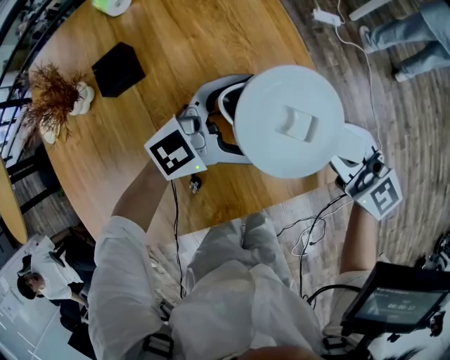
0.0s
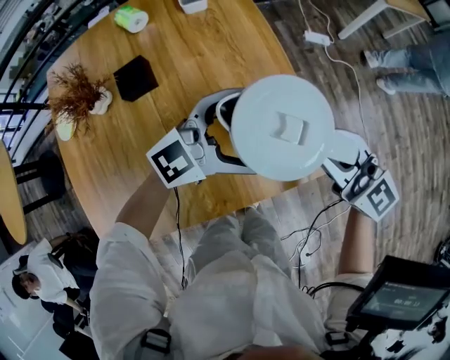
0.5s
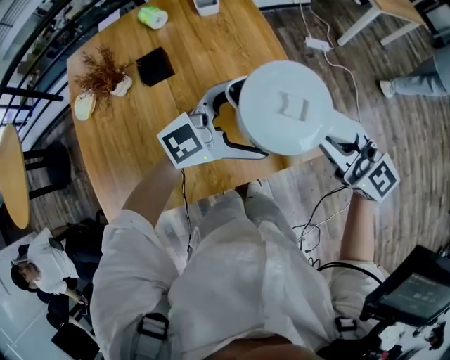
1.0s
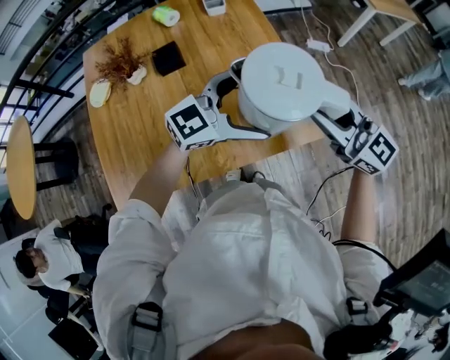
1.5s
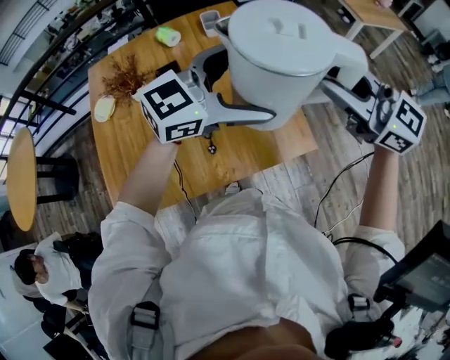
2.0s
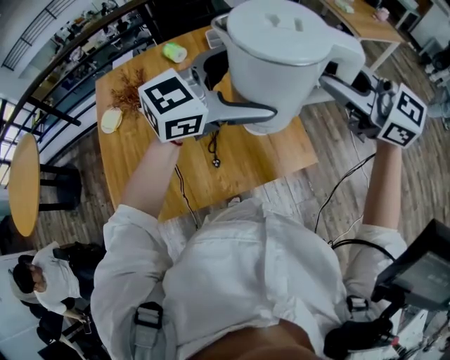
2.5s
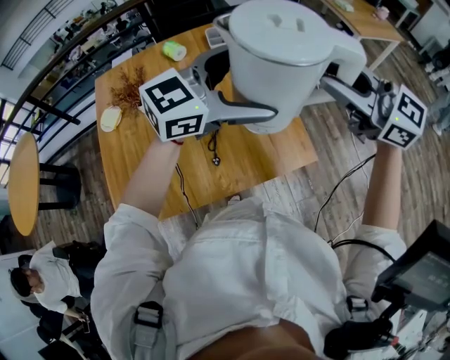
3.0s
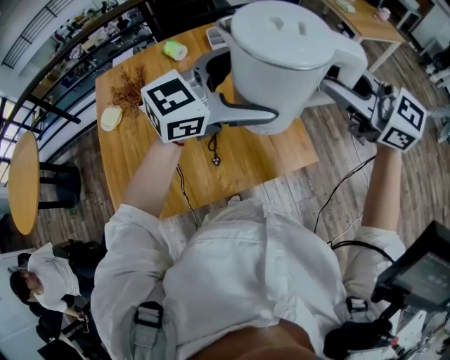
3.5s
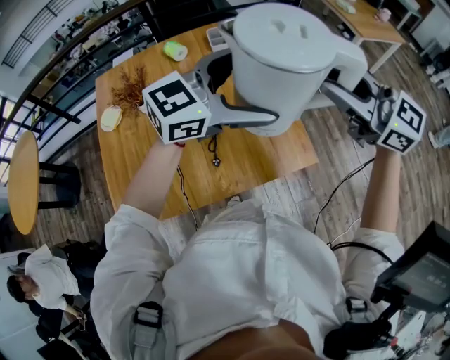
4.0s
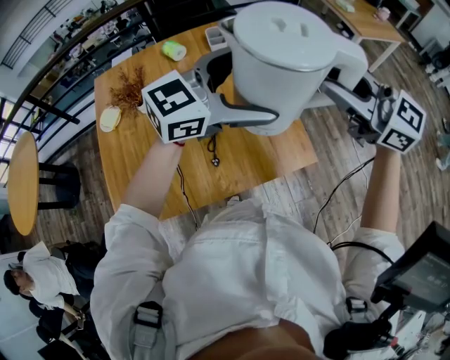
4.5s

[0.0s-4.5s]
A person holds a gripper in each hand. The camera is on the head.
0.0s to 2.0s: The two grippers go roughly 30 cm upward.
2.0s to 4.5s: The grippers make only small movements.

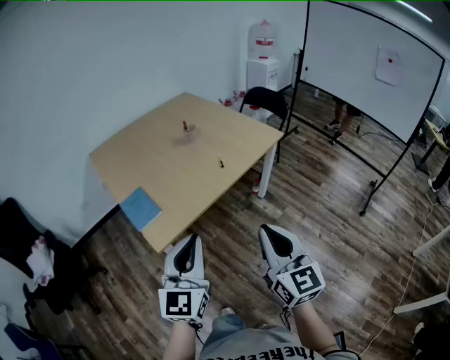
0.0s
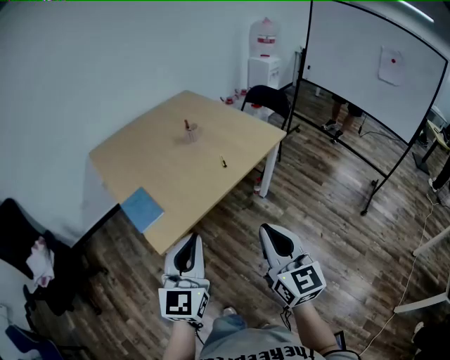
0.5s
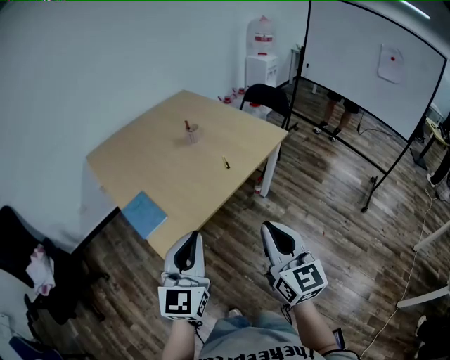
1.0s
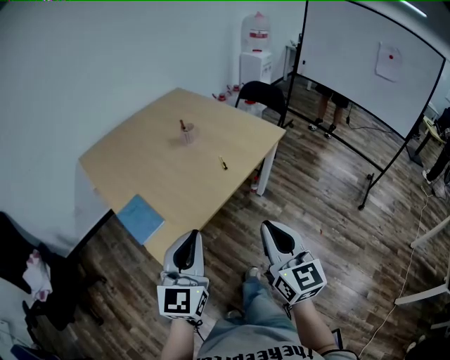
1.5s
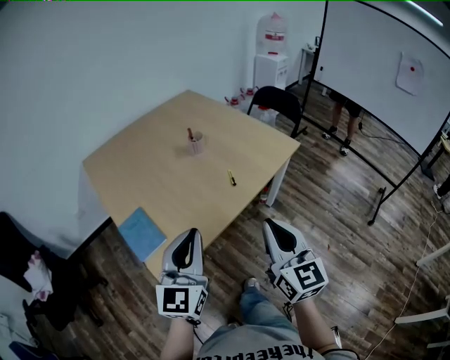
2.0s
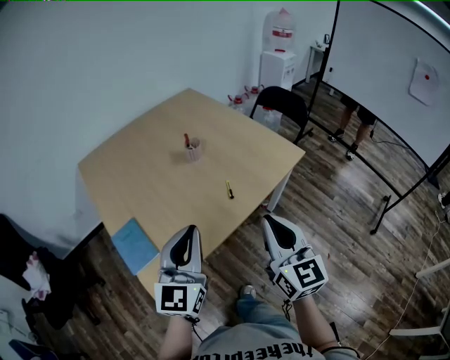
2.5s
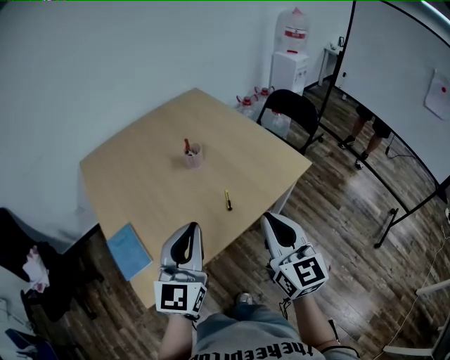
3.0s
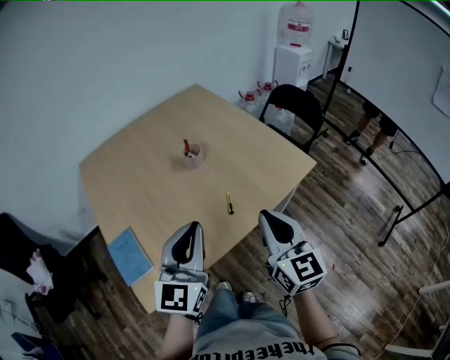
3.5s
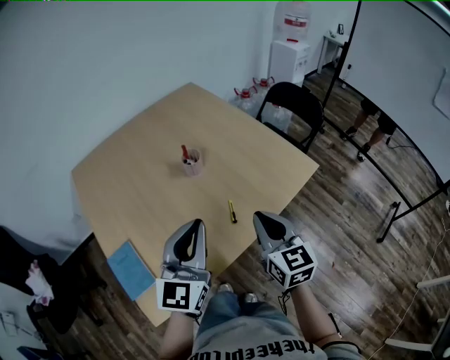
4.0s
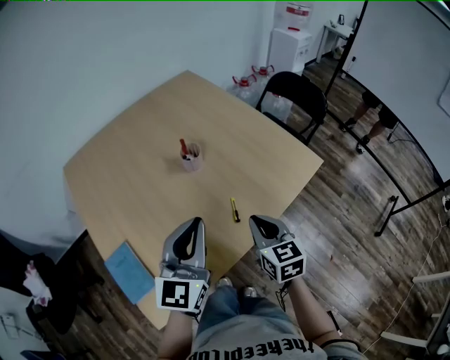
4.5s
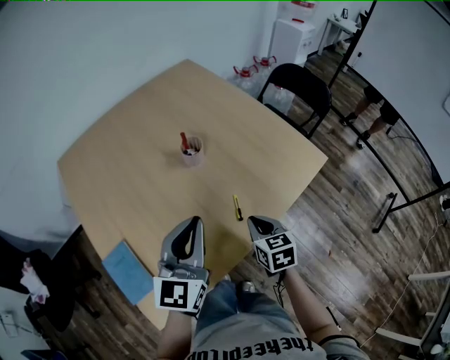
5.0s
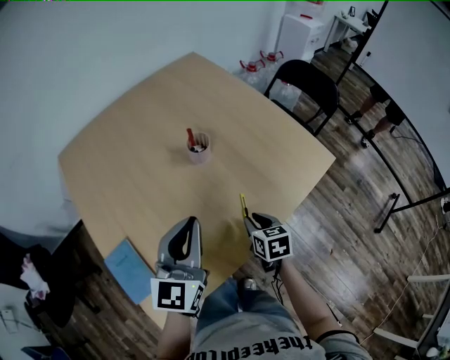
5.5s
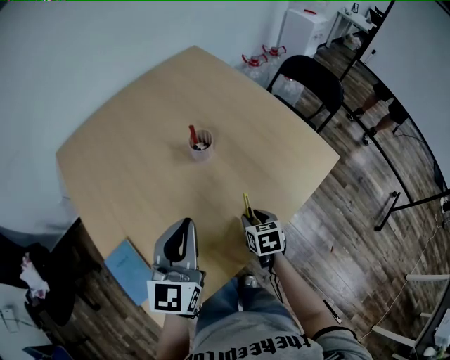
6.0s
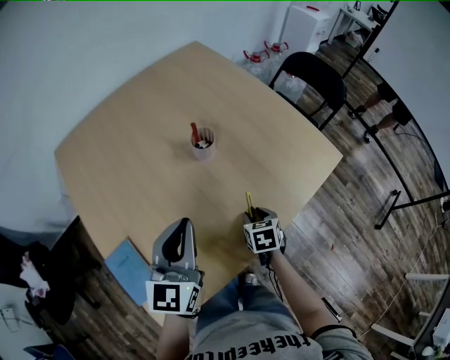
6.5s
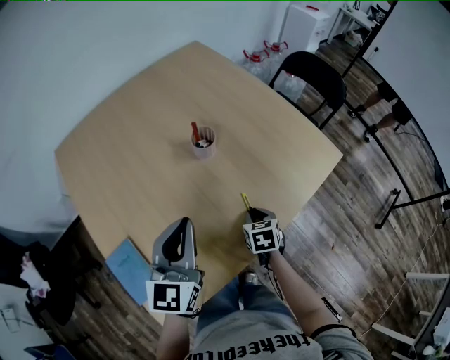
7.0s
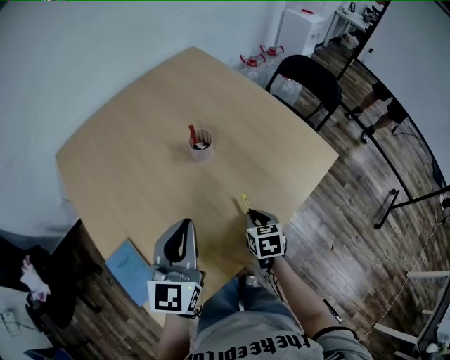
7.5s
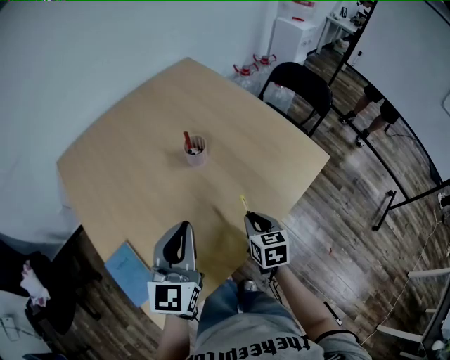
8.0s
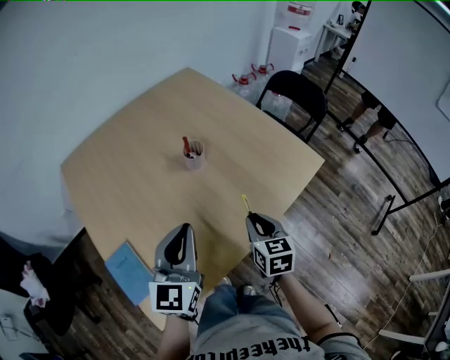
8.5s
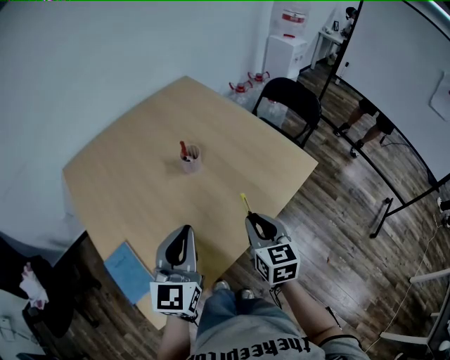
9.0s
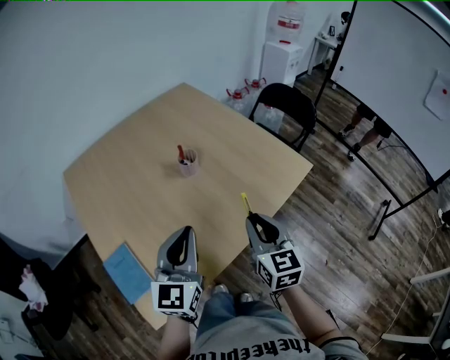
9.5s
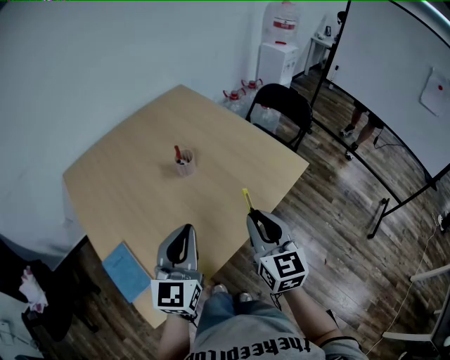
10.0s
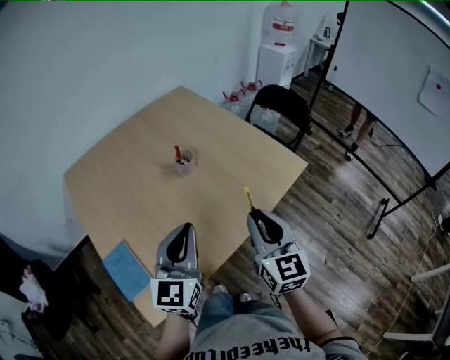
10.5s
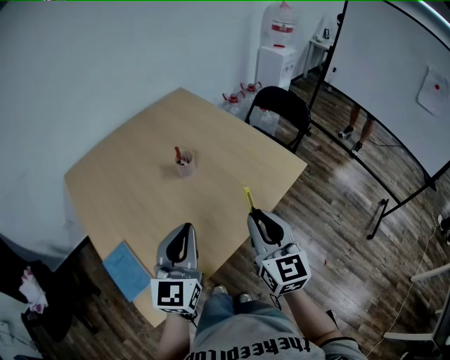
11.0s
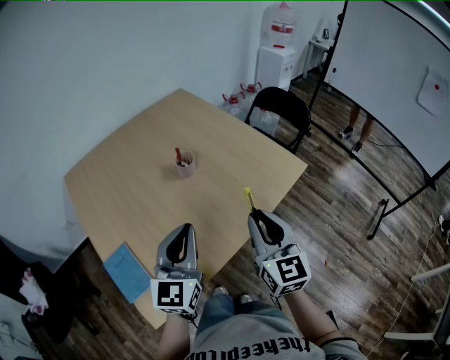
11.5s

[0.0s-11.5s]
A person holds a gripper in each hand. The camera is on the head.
0.0s to 2.0s: Both grippers travel together forward, about 15 cm.
2.0s to 4.0s: Both grippers travel together forward, roughly 25 cm.
4.0s to 6.0s: The right gripper is displaced downward by roughly 25 cm, tips its fingers downward by roughly 40 degrees, and opens up, while the left gripper moves to the left, forward and downward, approximately 10 cm.
6.0s to 7.5s: The right gripper closes.
7.5s to 9.5s: The left gripper heads backward, covering some 5 cm; the right gripper shifts about 20 cm upward, and angles its fingers upward, by some 30 degrees.
9.5s to 11.5s: The right gripper shifts some 5 cm upward.

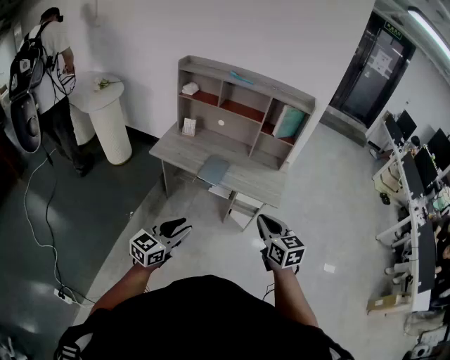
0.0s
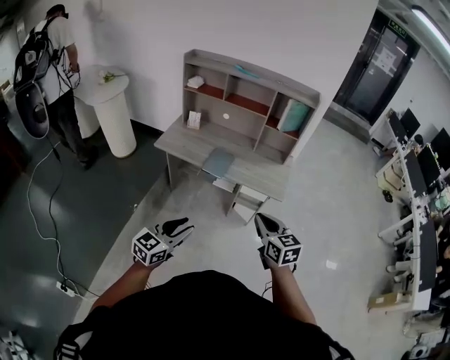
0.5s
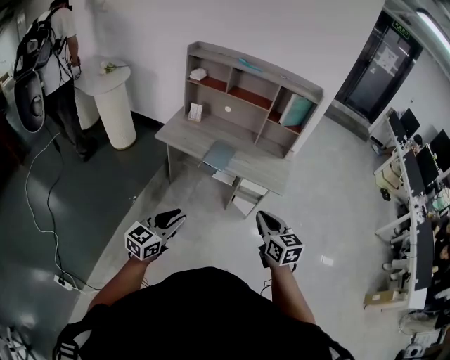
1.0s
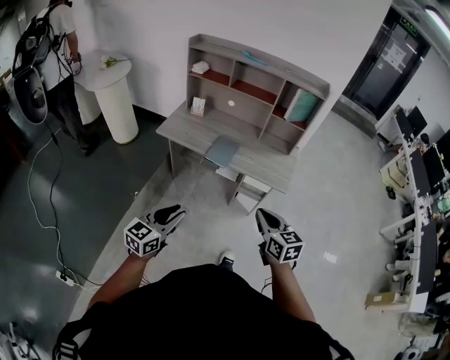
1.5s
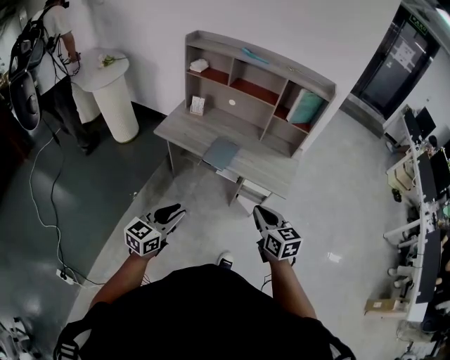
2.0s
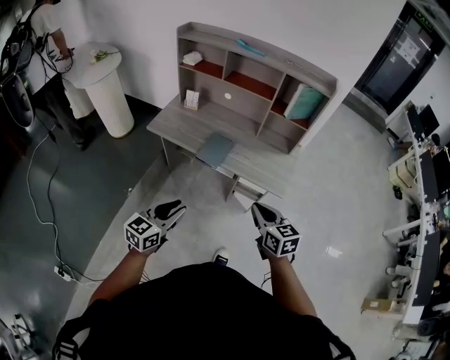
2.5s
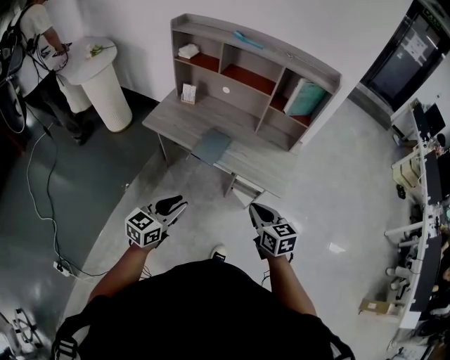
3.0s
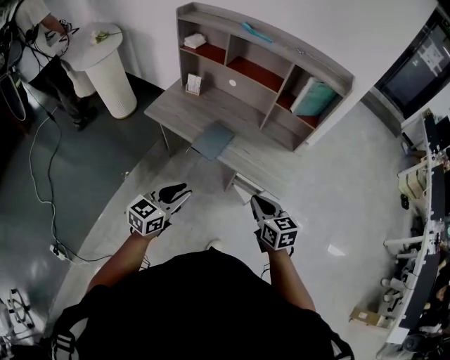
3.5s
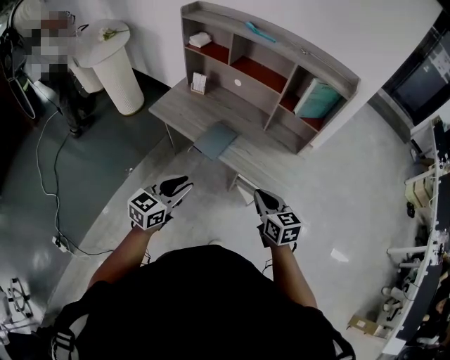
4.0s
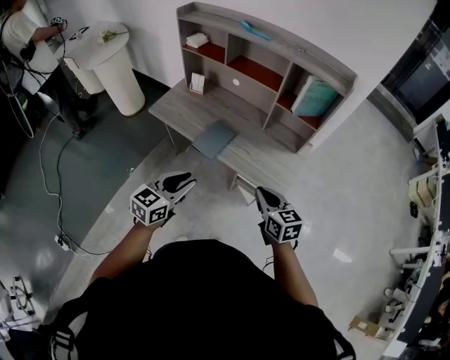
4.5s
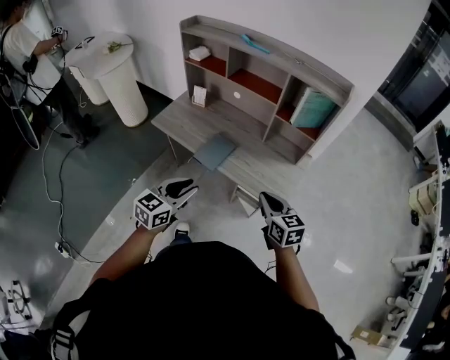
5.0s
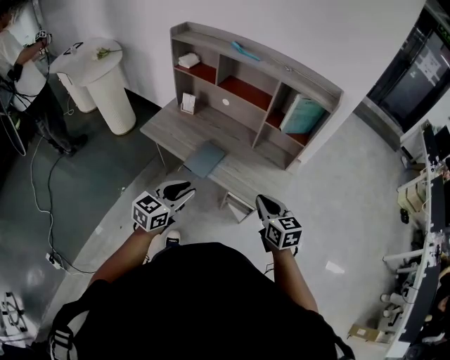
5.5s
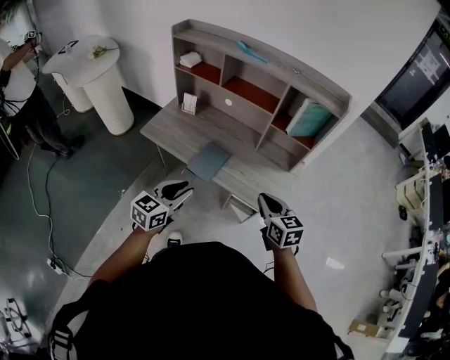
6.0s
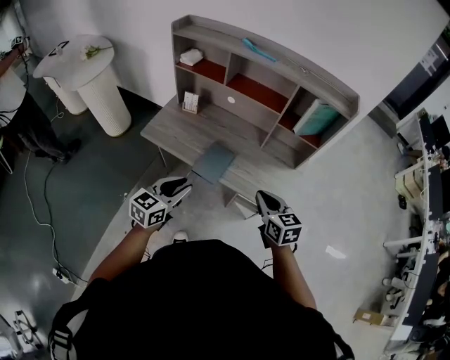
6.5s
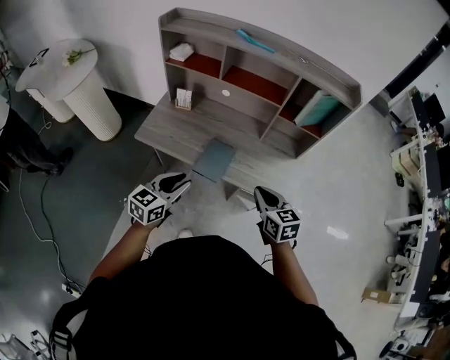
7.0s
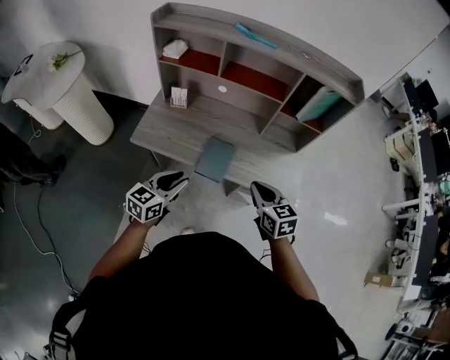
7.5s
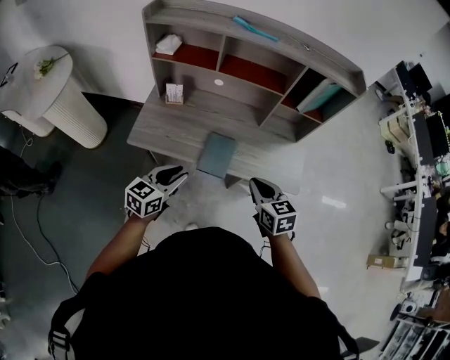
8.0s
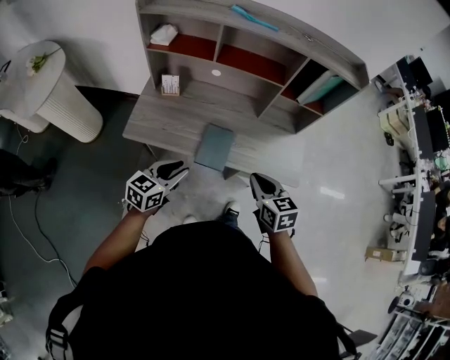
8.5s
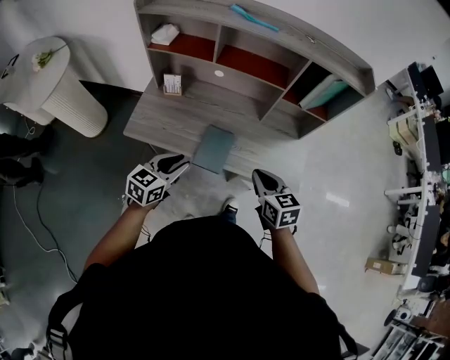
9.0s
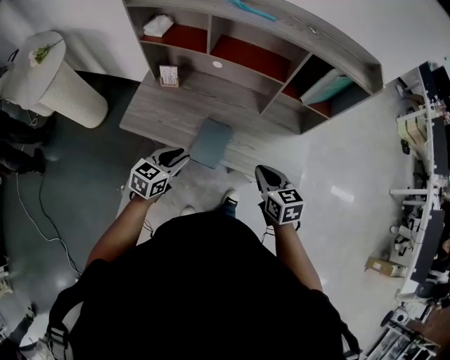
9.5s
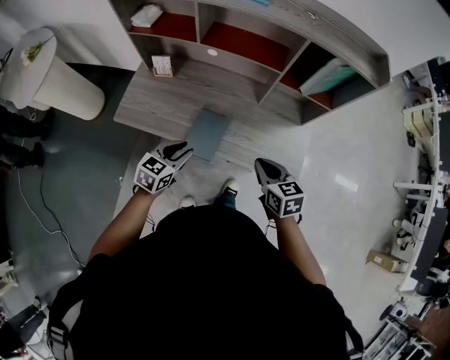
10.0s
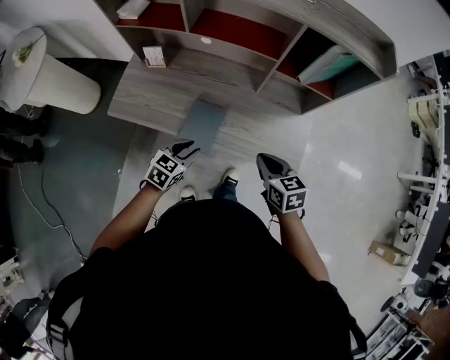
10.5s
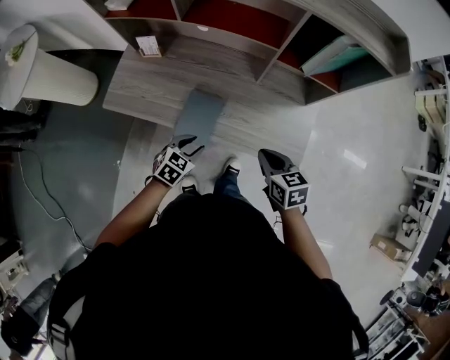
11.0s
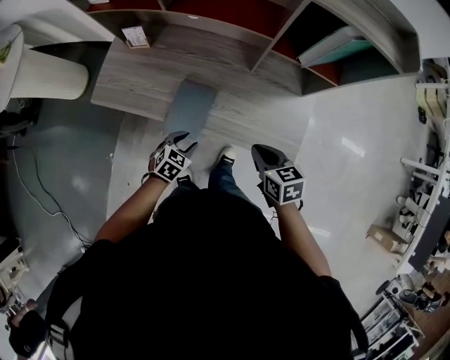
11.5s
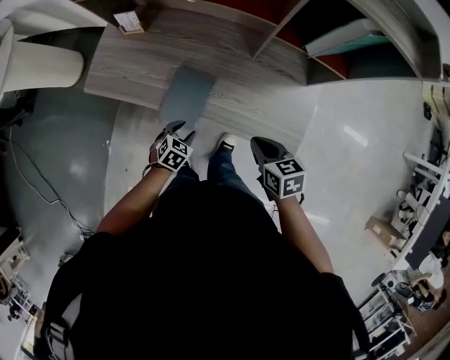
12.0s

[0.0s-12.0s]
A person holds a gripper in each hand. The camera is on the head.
0.0s to 2.0s: The right gripper moves downward and forward, roughly 10 cm, while the left gripper changes place by roughly 5 cm.
2.0s to 4.0s: The grippers both shift forward and to the right by about 20 cm.
4.0s to 6.0s: The two grippers go some 5 cm forward.
6.0s to 8.0s: The left gripper is displaced to the left and forward by approximately 20 cm; the right gripper is displaced to the left by some 20 cm.
8.0s to 10.0s: Both grippers move to the right, forward and downward, some 15 cm.
10.0s to 12.0s: The right gripper heads downward and to the right, covering approximately 10 cm; the left gripper is displaced downward by some 20 cm, and rotates about 30 degrees.
